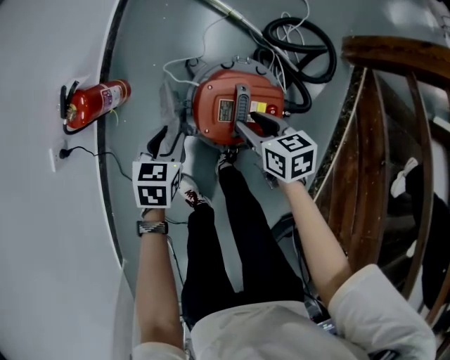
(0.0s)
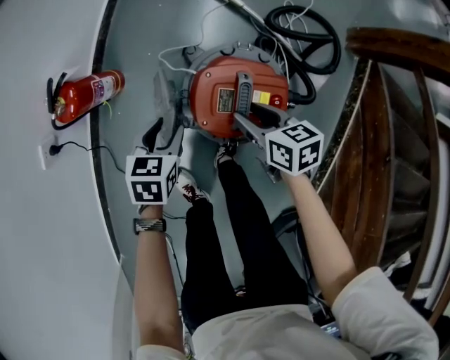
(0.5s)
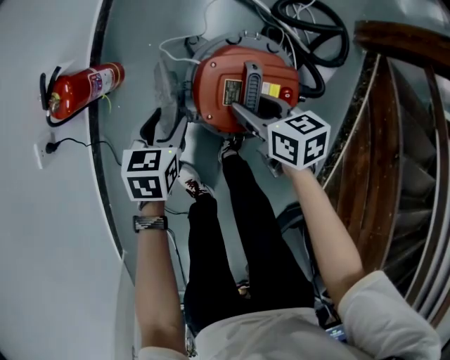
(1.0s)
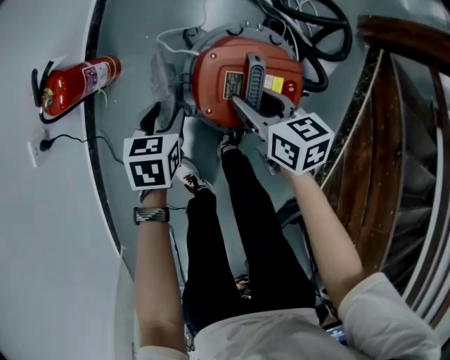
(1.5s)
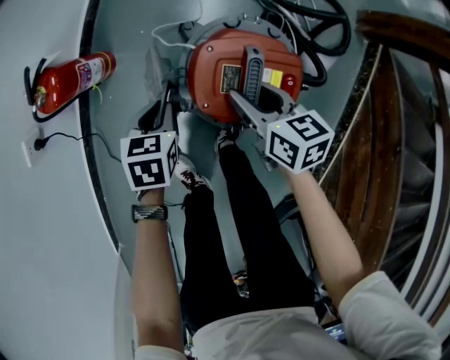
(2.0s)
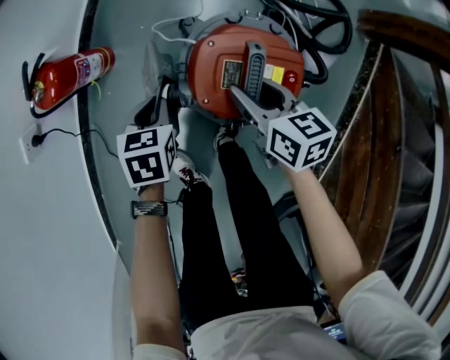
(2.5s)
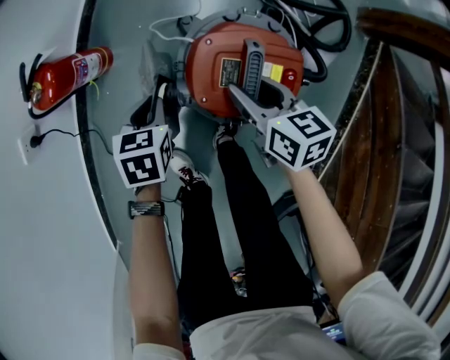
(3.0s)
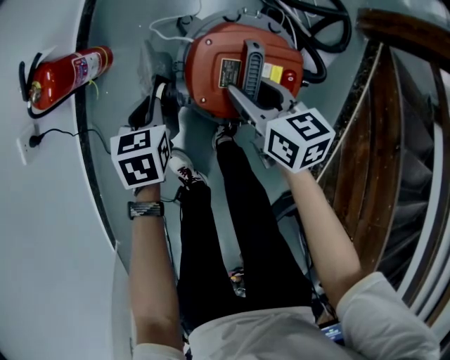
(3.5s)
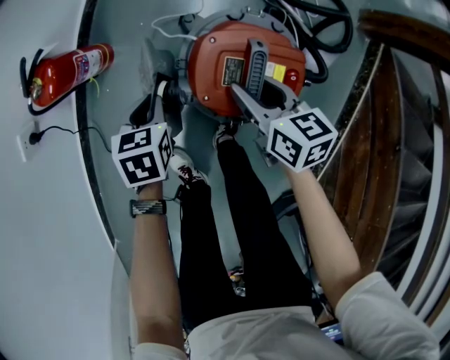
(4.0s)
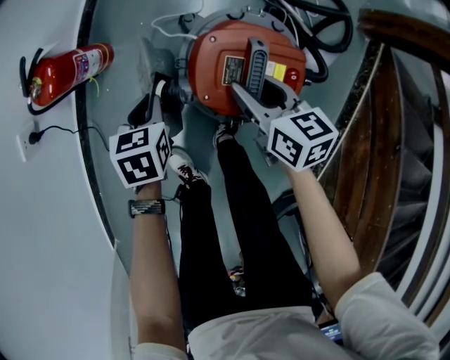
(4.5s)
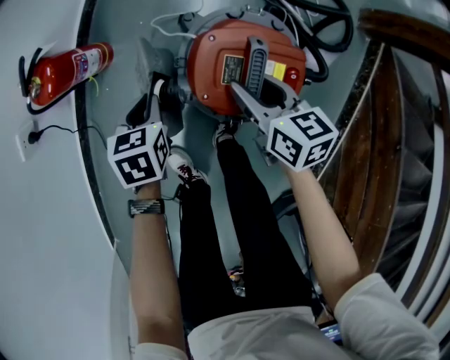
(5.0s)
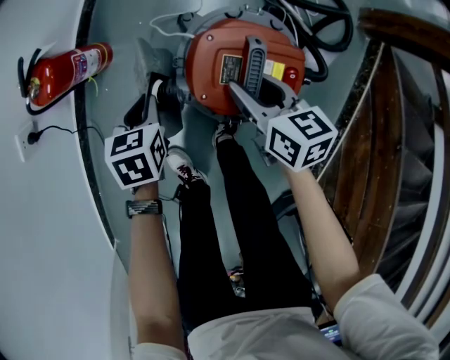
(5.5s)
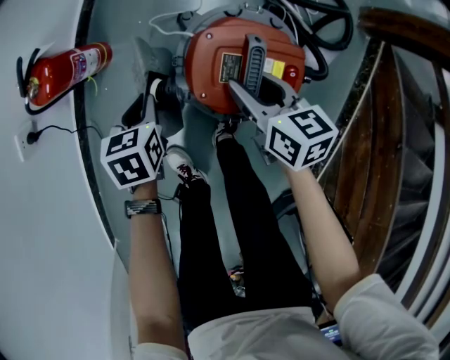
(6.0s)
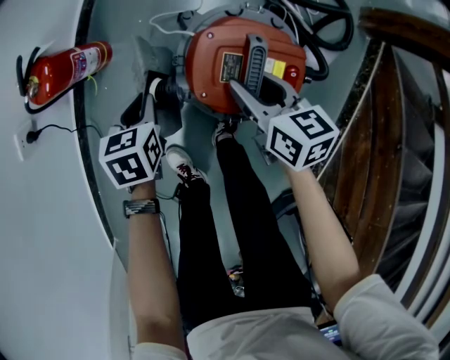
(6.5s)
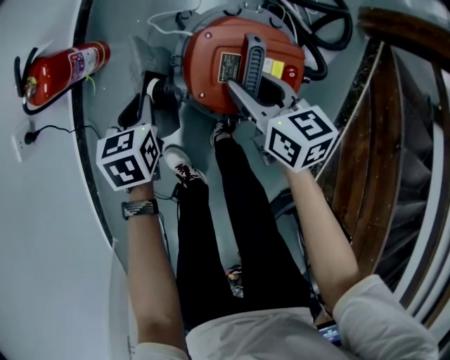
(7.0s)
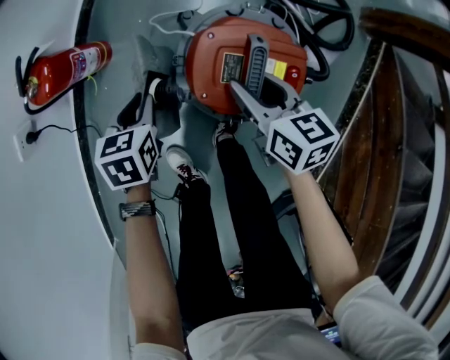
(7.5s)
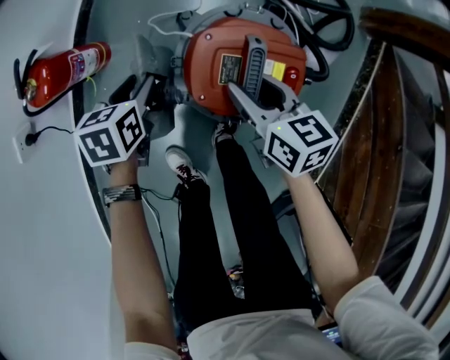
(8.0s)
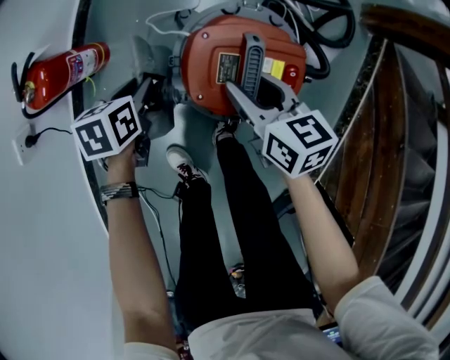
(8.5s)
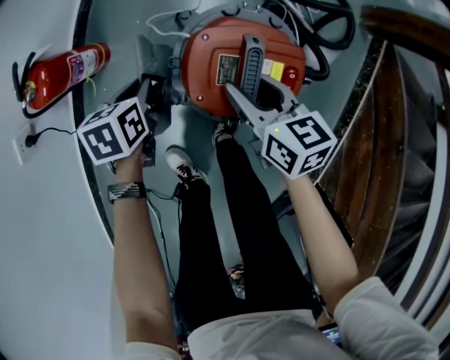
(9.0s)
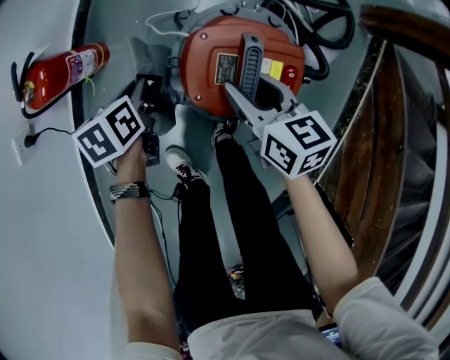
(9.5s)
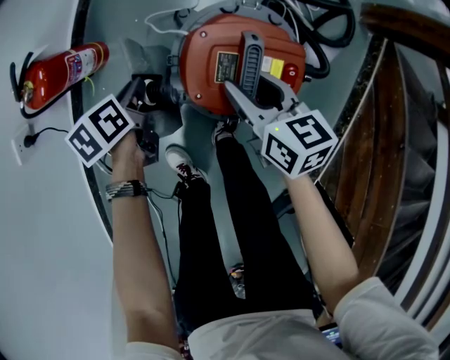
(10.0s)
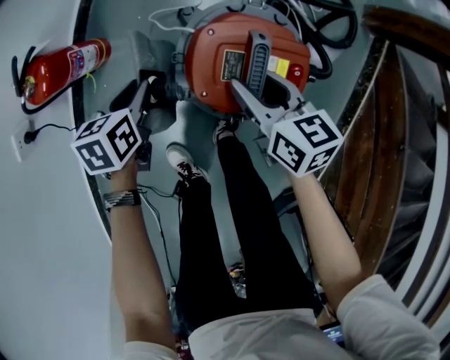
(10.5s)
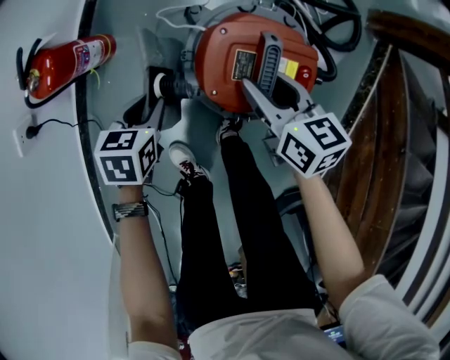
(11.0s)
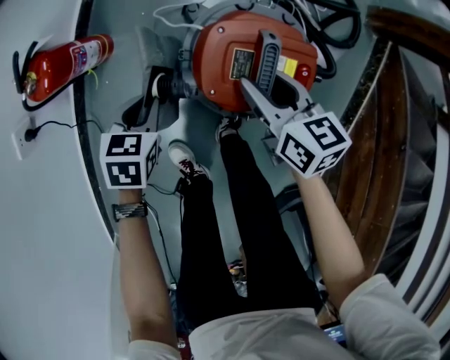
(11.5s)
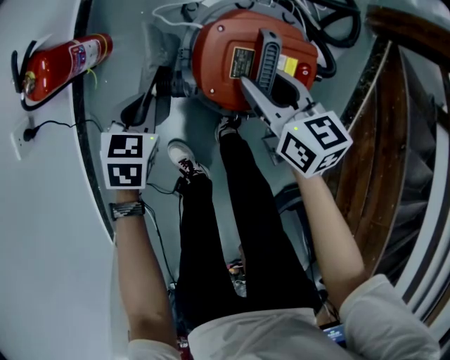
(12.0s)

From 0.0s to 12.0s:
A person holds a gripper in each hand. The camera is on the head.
From 0.0s to 2.0s: The left gripper shifts some 5 cm downward, and closes.
From 2.0s to 4.0s: The grippers stay close to where they were, moving slightly.
From 4.0s to 6.0s: The two grippers keep their place.
From 6.0s to 8.0s: The left gripper opens its fingers.
From 8.0s to 10.0s: The left gripper rotates about 30 degrees, and closes up.
From 10.0s to 12.0s: The left gripper heads backward, covering about 5 cm, and twists approximately 50 degrees clockwise, seen from behind.

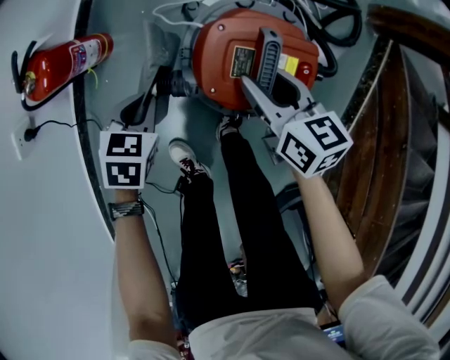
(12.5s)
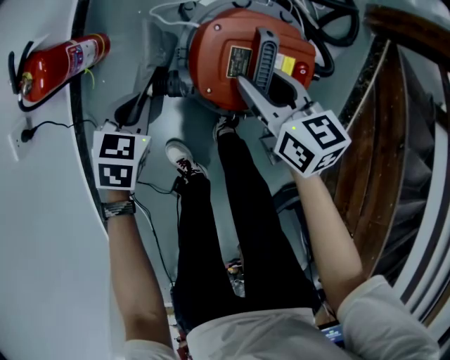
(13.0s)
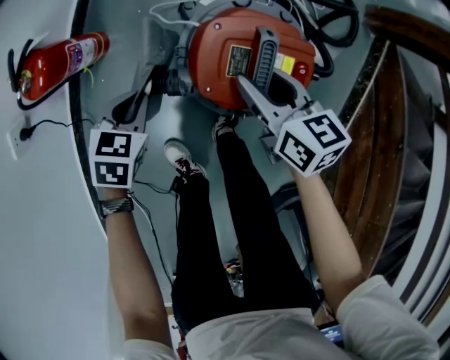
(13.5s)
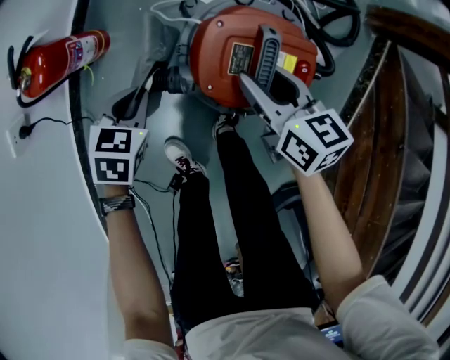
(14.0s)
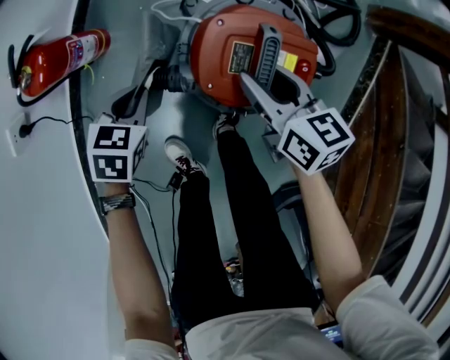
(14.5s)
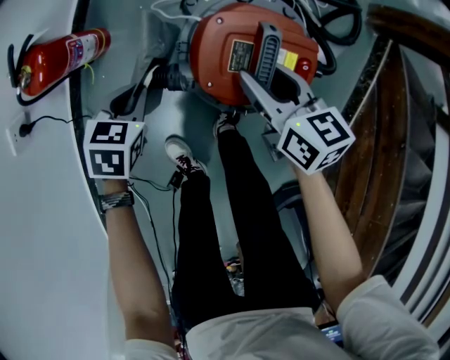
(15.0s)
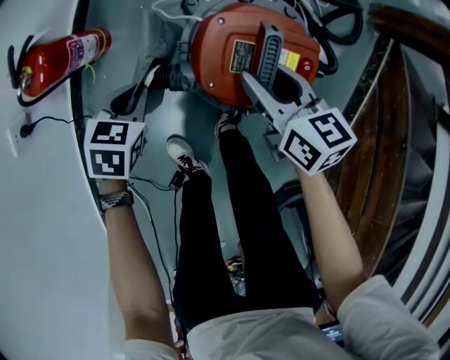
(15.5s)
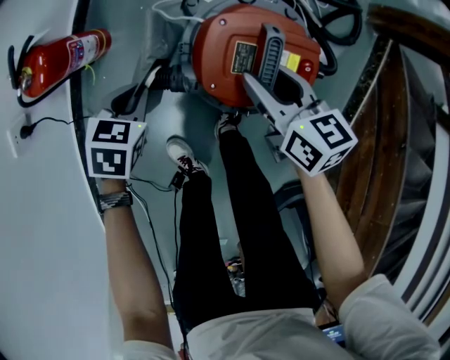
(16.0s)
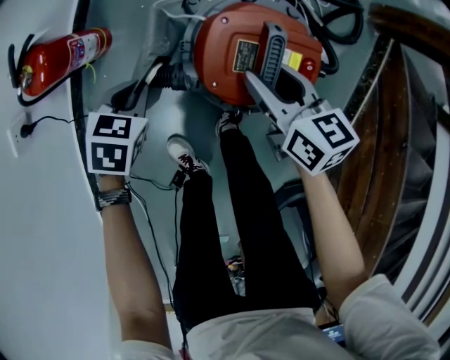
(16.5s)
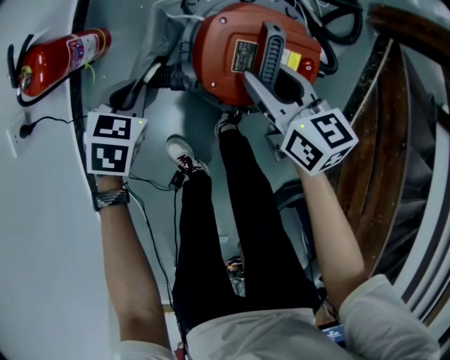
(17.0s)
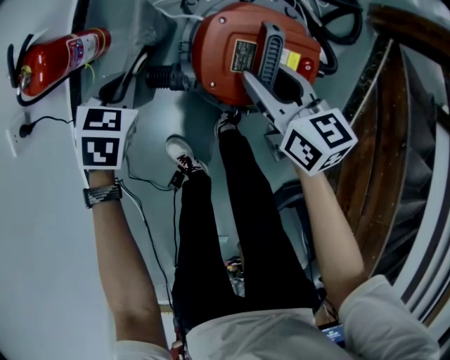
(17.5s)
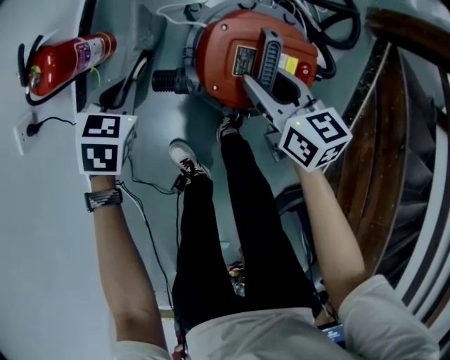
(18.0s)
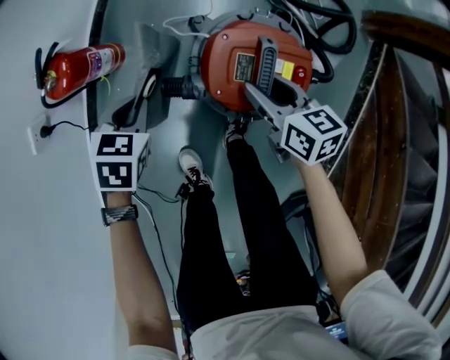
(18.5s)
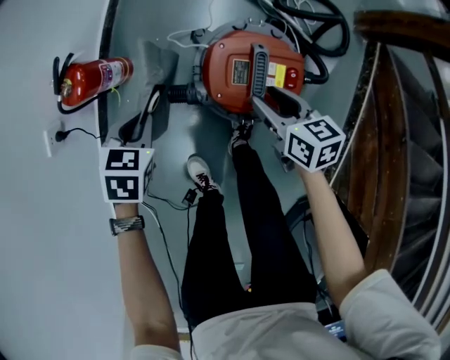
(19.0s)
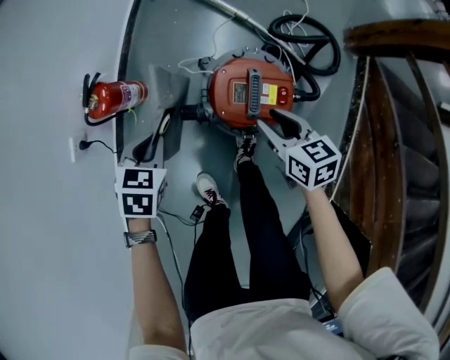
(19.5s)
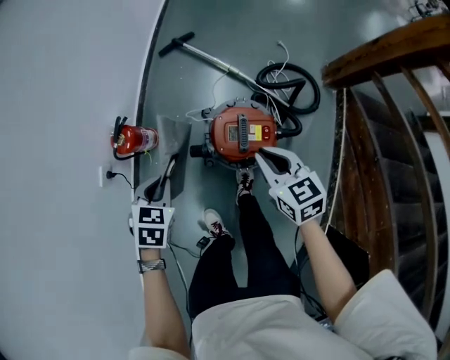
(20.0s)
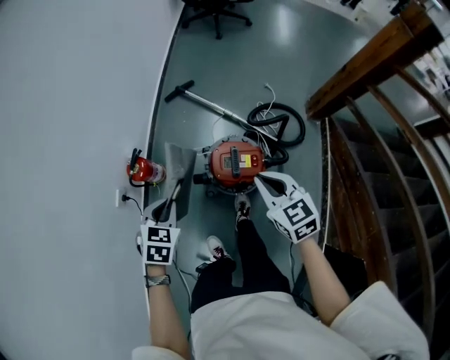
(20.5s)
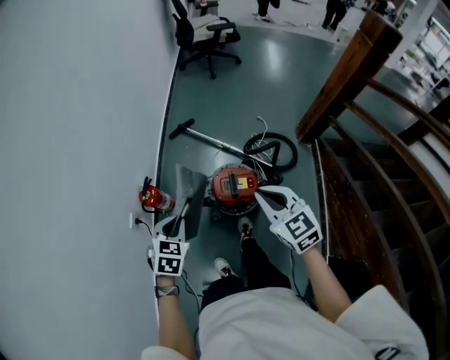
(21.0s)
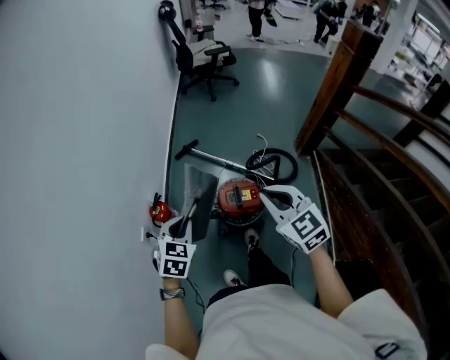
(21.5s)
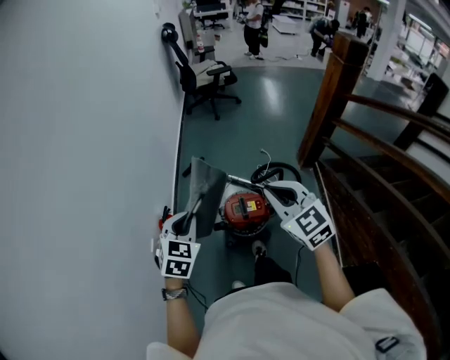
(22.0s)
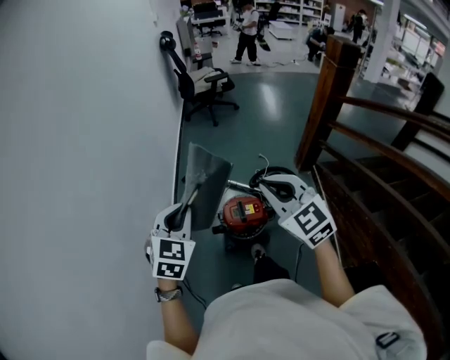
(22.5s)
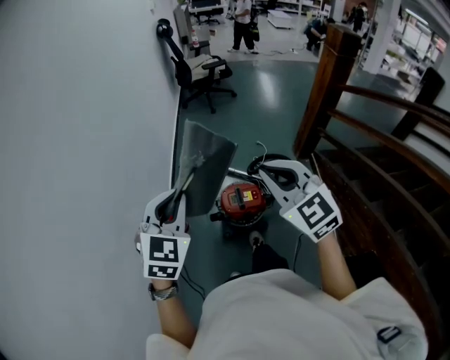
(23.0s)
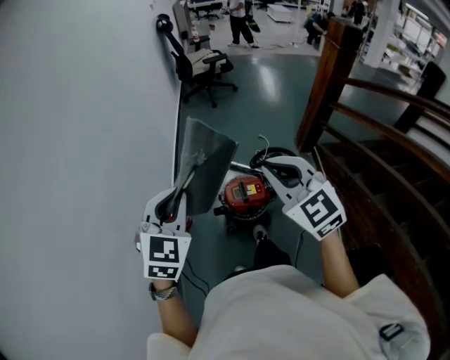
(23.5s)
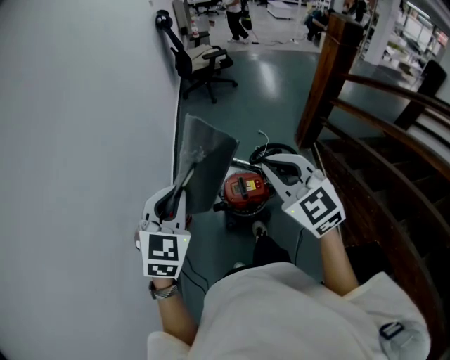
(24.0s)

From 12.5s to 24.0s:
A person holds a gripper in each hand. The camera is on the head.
From 12.5s to 14.5s: Both grippers stay put.
From 14.5s to 16.5s: There are only small adjustments of the grippers.
From 16.5s to 18.5s: The left gripper travels upward by roughly 5 cm.
From 18.5s to 20.0s: Both grippers move upward, some 25 cm. The right gripper turns by roughly 20 degrees, and closes its fingers.
From 20.0s to 22.0s: The two grippers go roughly 40 cm upward. The left gripper rotates approximately 30 degrees. Meanwhile the right gripper turns by about 30 degrees.
From 22.0s to 24.0s: The right gripper is displaced upward by some 5 cm; the left gripper shifts some 10 cm upward.

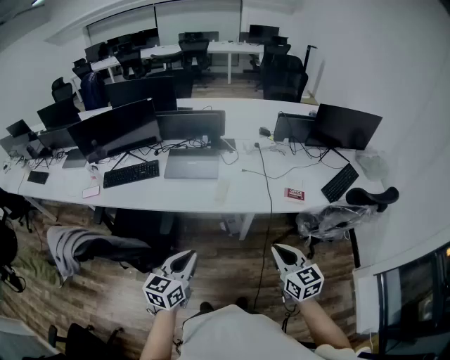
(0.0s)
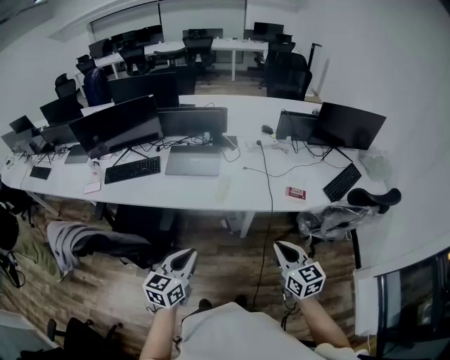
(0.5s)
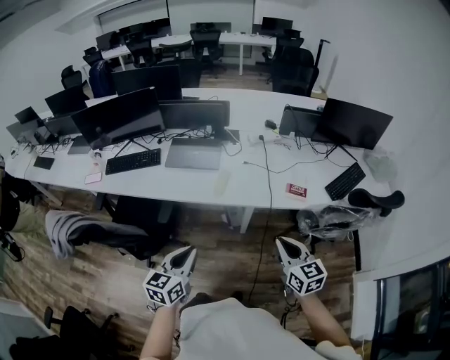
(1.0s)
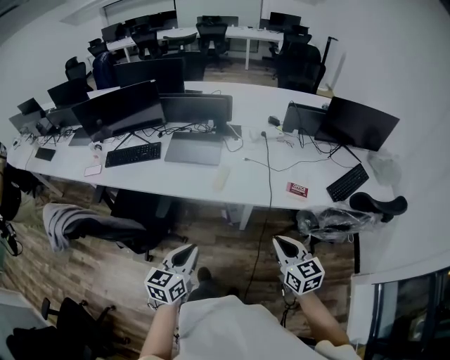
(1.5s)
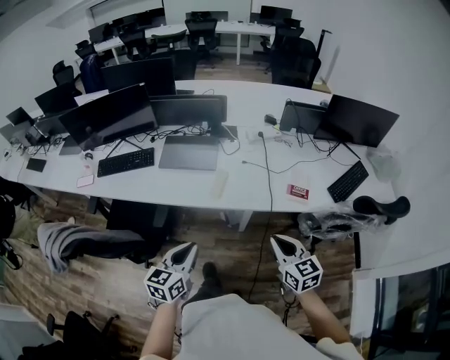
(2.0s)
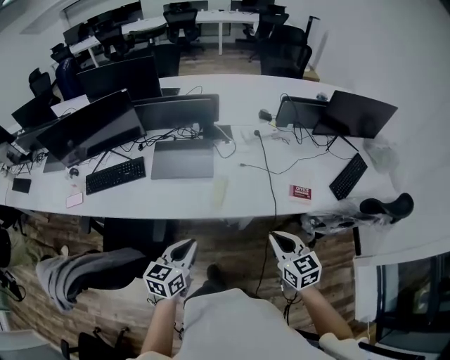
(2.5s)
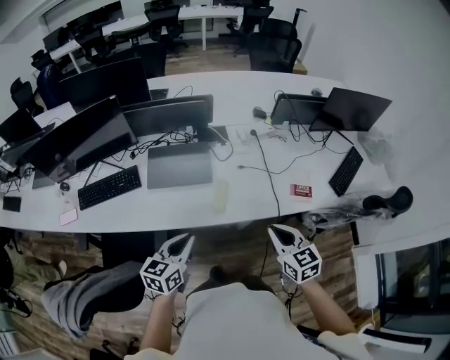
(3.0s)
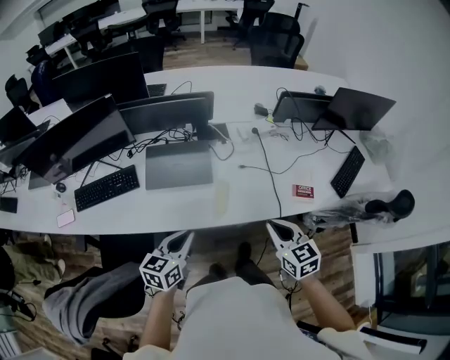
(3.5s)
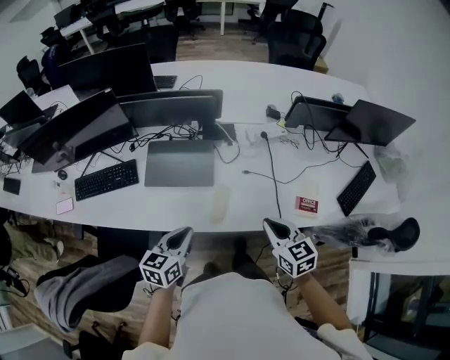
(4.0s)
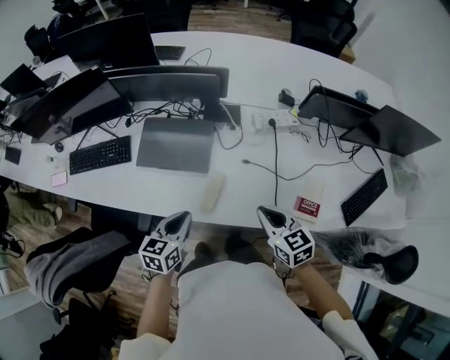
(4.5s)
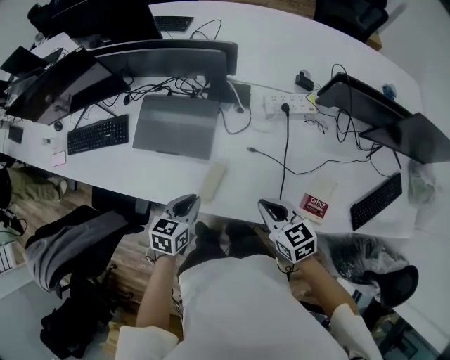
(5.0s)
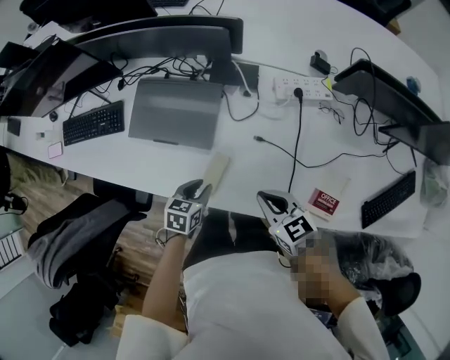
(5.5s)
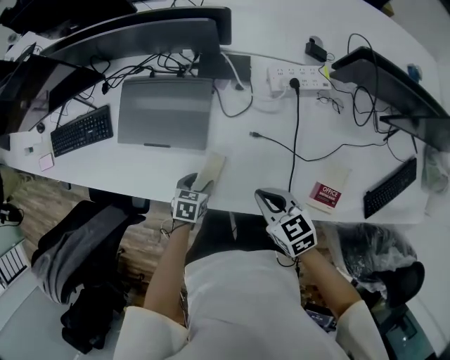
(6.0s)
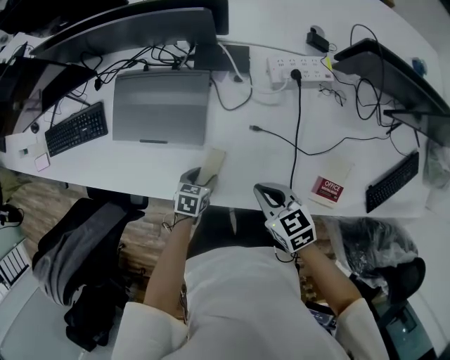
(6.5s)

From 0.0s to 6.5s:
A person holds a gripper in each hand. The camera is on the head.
From 0.0s to 2.0s: Both grippers travel together forward, some 10 cm.
From 2.0s to 4.5s: Both grippers move forward, about 35 cm.
From 4.5s to 6.5s: The left gripper moves downward, about 30 cm, swivels approximately 30 degrees, and opens up. Meanwhile the right gripper heads downward and forward, covering some 15 cm.
